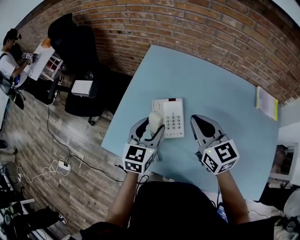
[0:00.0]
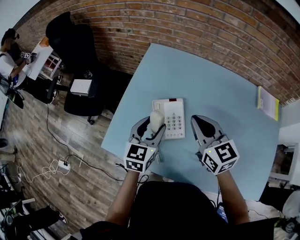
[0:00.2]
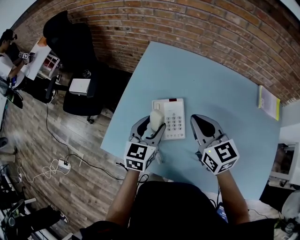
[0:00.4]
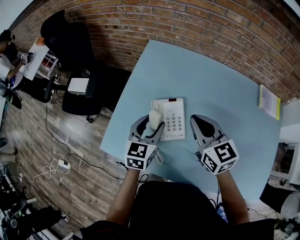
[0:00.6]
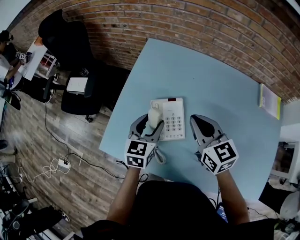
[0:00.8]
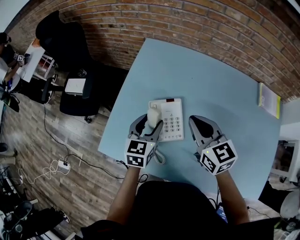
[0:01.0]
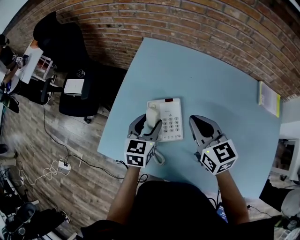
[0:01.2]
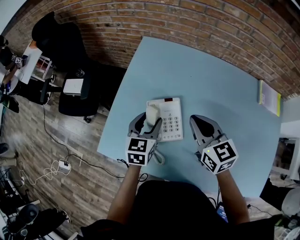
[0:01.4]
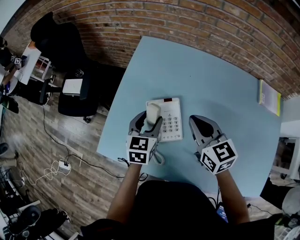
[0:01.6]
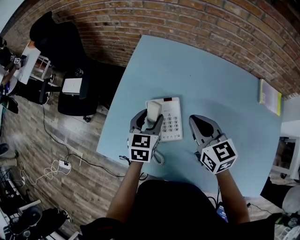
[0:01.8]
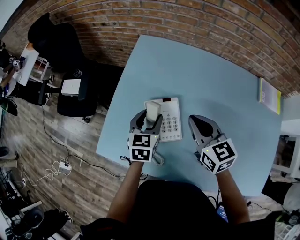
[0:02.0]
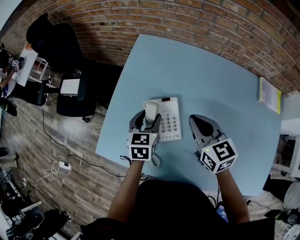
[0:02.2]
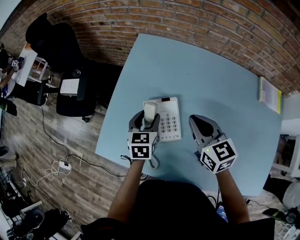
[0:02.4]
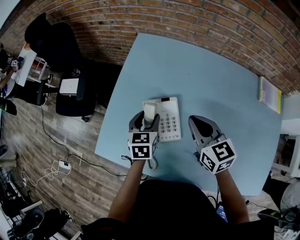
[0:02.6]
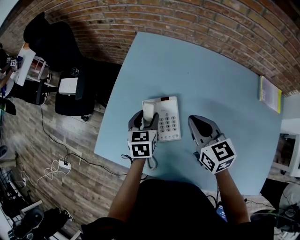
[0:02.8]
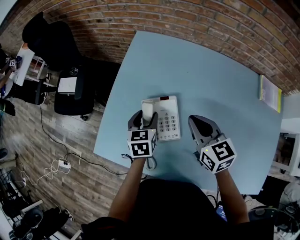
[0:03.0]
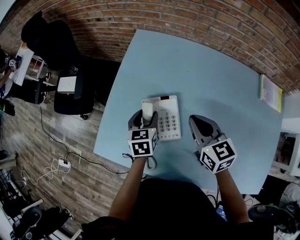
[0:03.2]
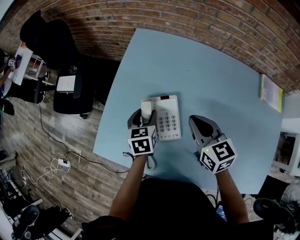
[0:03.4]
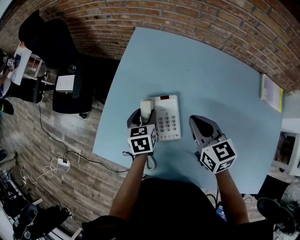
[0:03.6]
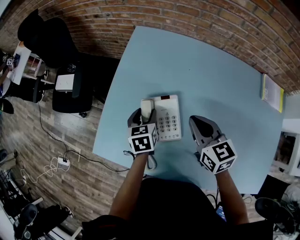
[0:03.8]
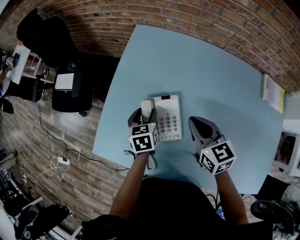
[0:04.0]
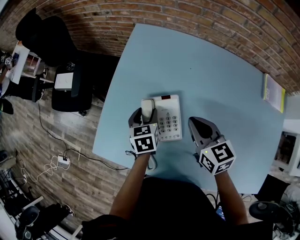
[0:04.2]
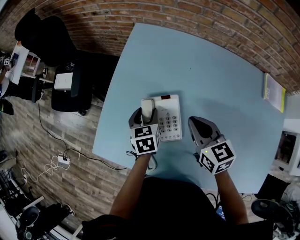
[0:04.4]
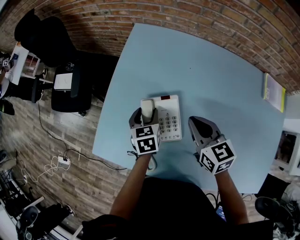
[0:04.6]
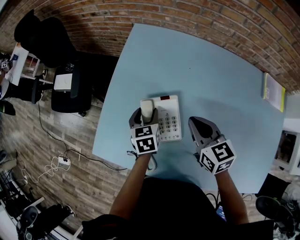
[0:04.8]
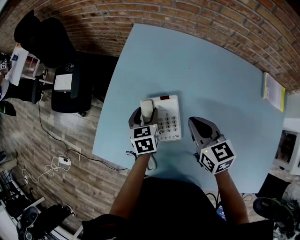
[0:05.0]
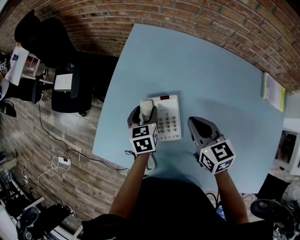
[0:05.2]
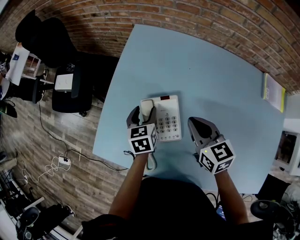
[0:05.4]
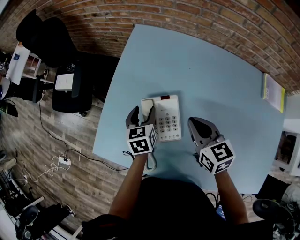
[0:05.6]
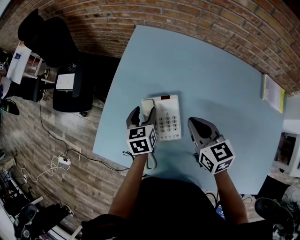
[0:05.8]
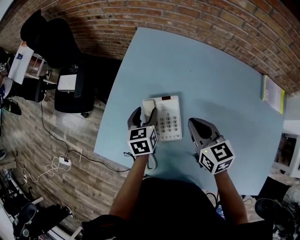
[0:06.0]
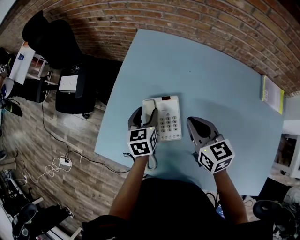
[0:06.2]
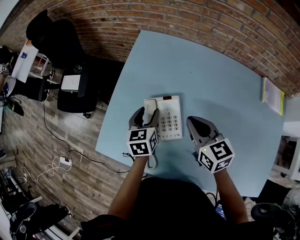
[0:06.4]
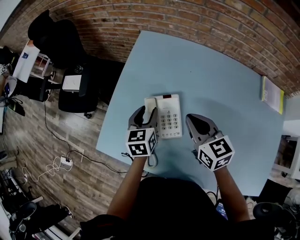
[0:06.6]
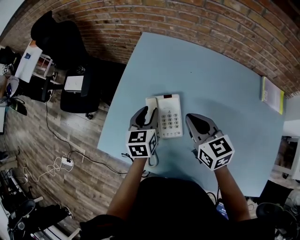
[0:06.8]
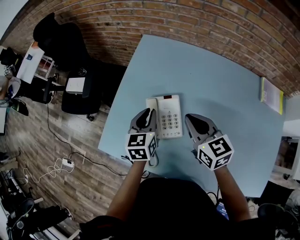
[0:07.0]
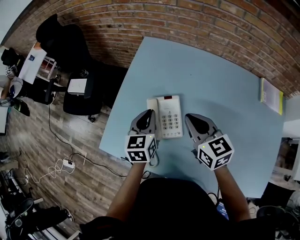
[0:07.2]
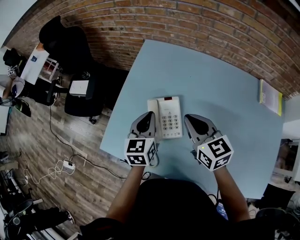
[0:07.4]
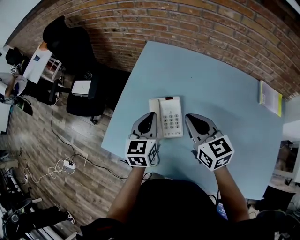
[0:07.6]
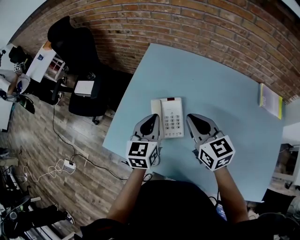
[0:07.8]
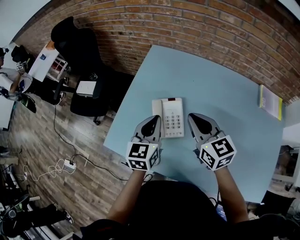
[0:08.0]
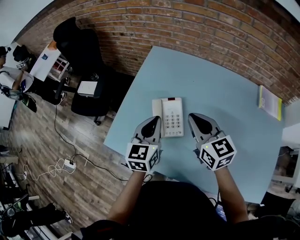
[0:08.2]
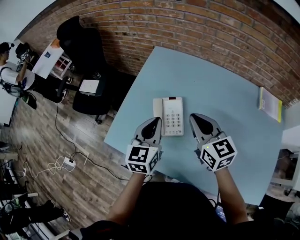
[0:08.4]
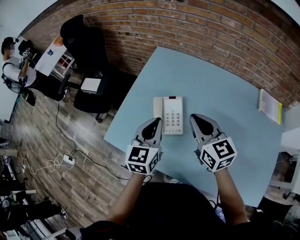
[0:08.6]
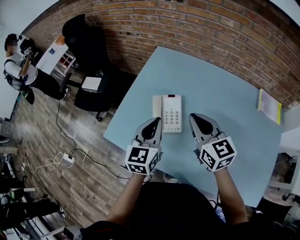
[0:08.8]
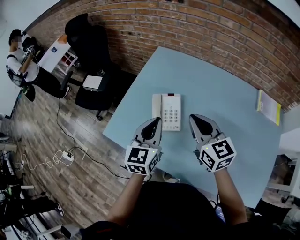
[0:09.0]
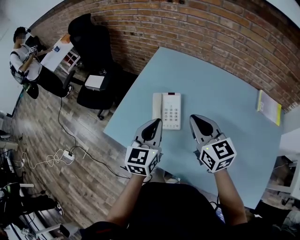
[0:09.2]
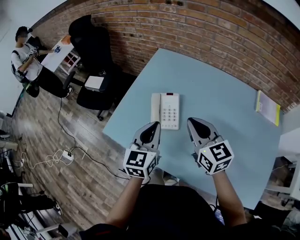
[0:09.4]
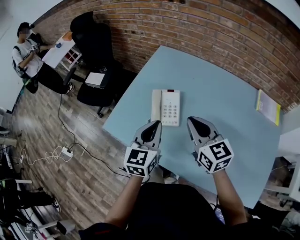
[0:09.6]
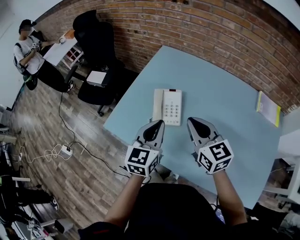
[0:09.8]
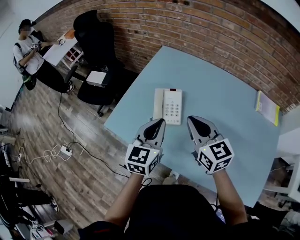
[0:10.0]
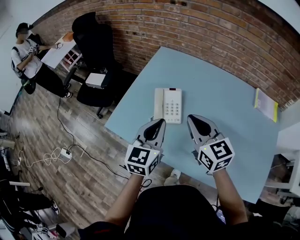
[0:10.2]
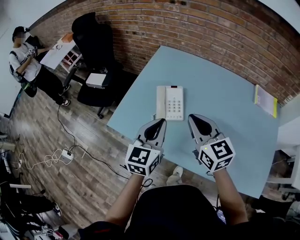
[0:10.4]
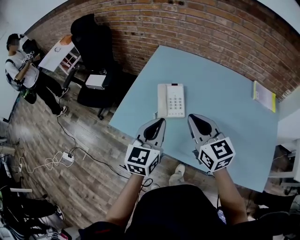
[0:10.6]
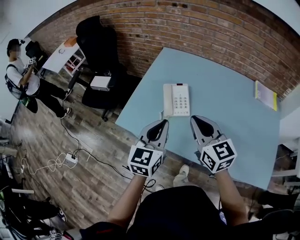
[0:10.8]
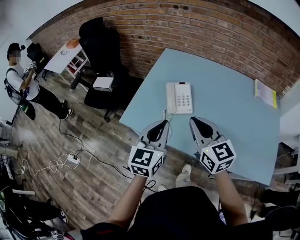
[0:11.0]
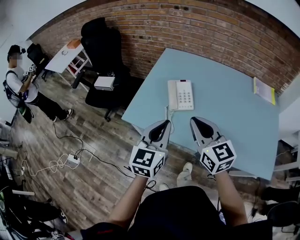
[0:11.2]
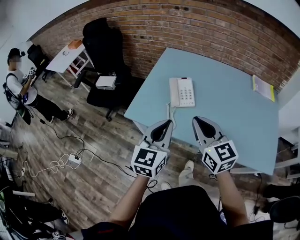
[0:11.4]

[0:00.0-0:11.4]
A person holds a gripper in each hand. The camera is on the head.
0:00.0 to 0:01.4: The right gripper travels downward by approximately 5 cm. The left gripper shifts roughly 10 cm downward and forward.
0:01.4 to 0:02.8: The left gripper ends up some 5 cm from where it was.
0:02.8 to 0:04.2: The left gripper shifts by some 5 cm.
0:04.2 to 0:05.6: The grippers stay close to where they were, moving slightly.
0:05.6 to 0:07.2: The left gripper shifts some 10 cm upward and backward, and closes up. The right gripper moves upward, about 5 cm.
0:07.2 to 0:08.6: The right gripper travels upward and backward by some 10 cm. Meanwhile the left gripper travels backward and upward by approximately 15 cm.
0:08.6 to 0:10.0: Both grippers travel together backward, roughly 10 cm.
0:10.0 to 0:11.4: The two grippers go some 20 cm backward and to the left.

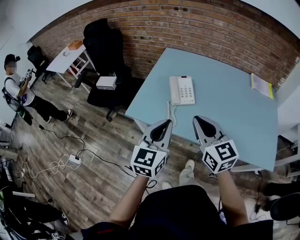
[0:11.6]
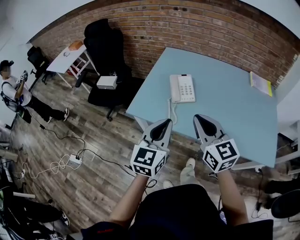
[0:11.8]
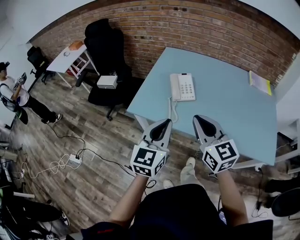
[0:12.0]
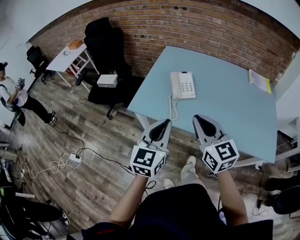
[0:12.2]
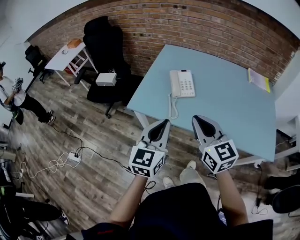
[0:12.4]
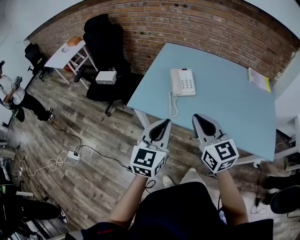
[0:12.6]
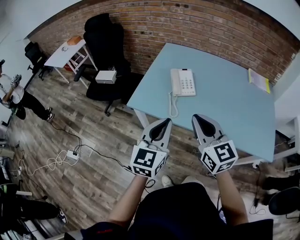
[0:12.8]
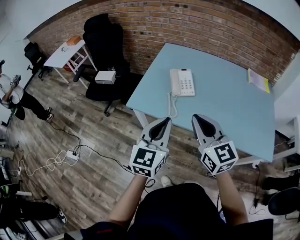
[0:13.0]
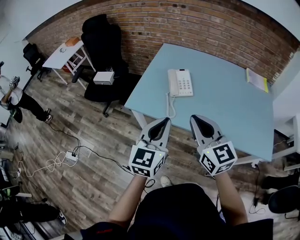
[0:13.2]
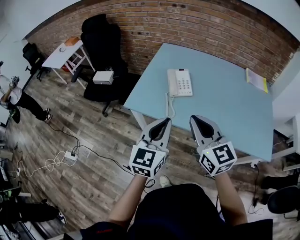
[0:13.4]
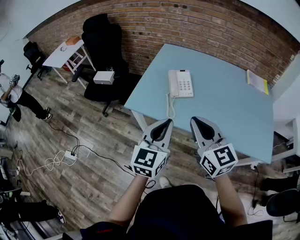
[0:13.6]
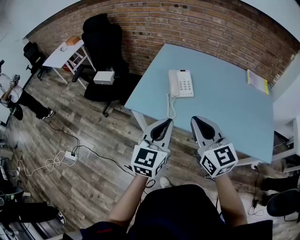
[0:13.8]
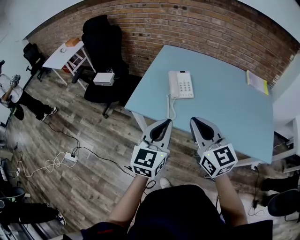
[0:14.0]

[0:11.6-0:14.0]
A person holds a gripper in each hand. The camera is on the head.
0:11.6 to 0:12.8: The grippers both shift backward by some 5 cm.
0:12.8 to 0:14.0: The grippers stay close to where they were, moving slightly.

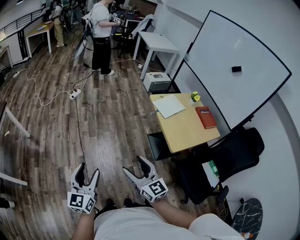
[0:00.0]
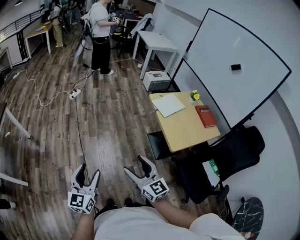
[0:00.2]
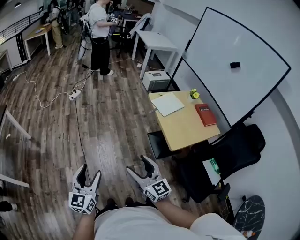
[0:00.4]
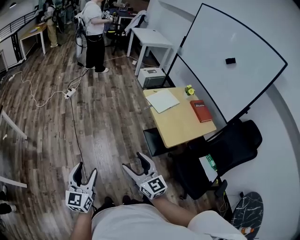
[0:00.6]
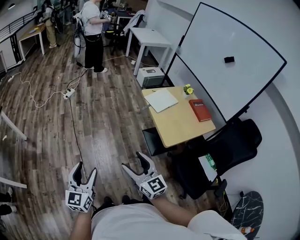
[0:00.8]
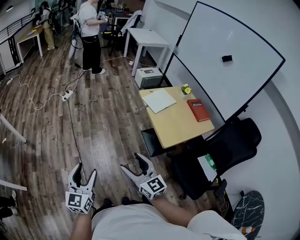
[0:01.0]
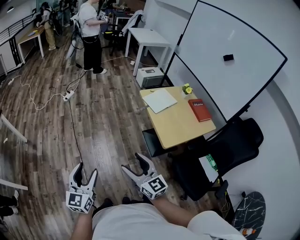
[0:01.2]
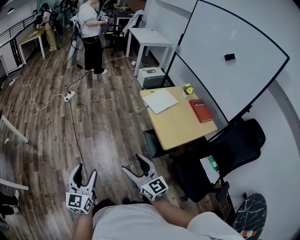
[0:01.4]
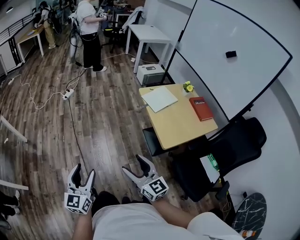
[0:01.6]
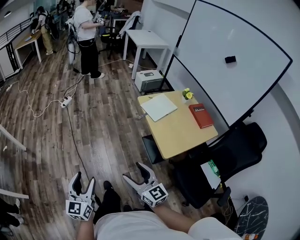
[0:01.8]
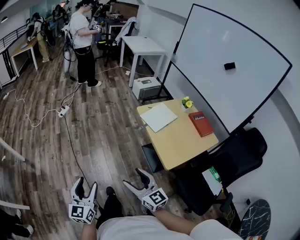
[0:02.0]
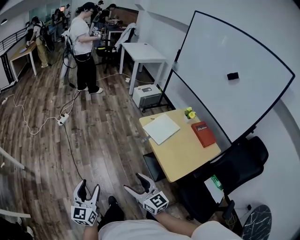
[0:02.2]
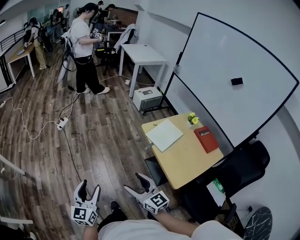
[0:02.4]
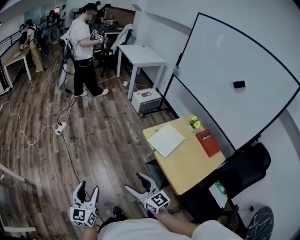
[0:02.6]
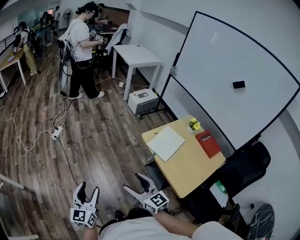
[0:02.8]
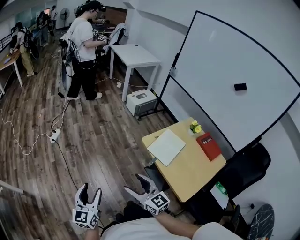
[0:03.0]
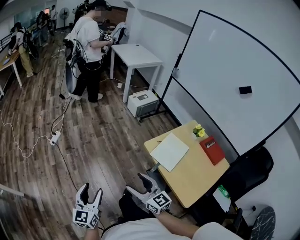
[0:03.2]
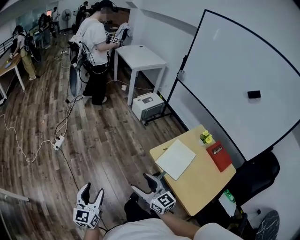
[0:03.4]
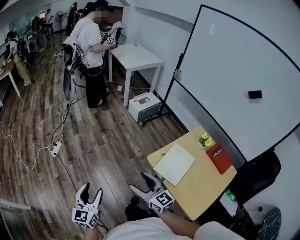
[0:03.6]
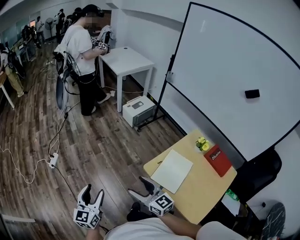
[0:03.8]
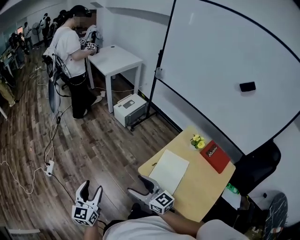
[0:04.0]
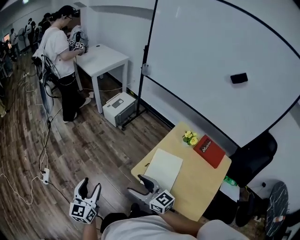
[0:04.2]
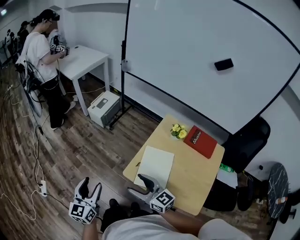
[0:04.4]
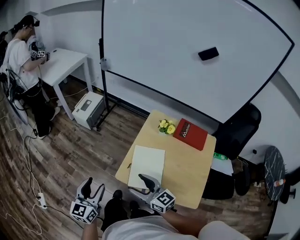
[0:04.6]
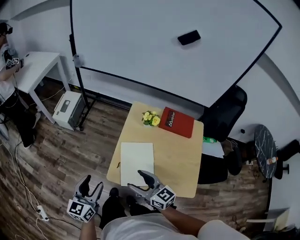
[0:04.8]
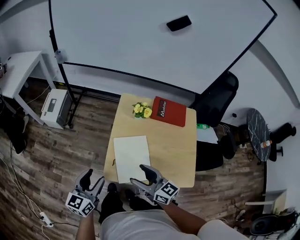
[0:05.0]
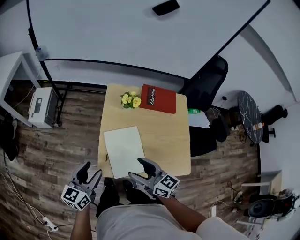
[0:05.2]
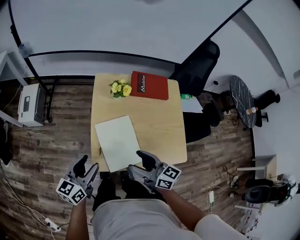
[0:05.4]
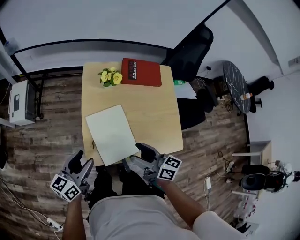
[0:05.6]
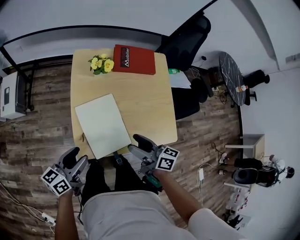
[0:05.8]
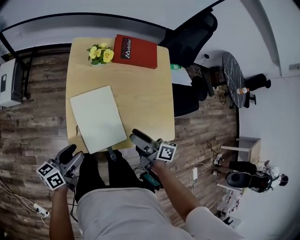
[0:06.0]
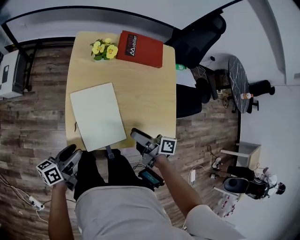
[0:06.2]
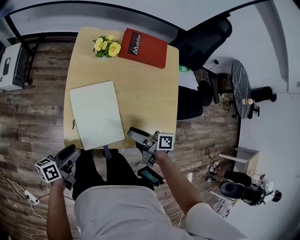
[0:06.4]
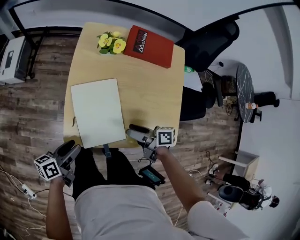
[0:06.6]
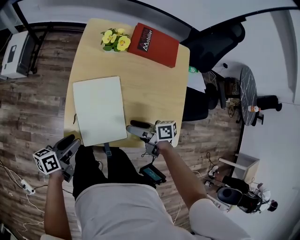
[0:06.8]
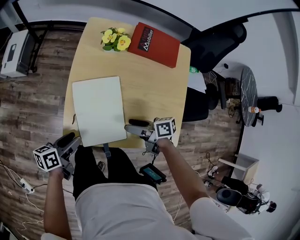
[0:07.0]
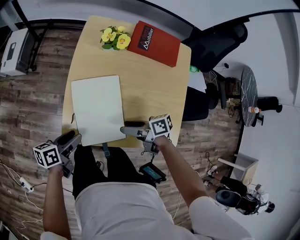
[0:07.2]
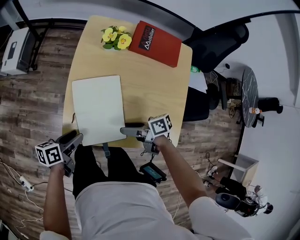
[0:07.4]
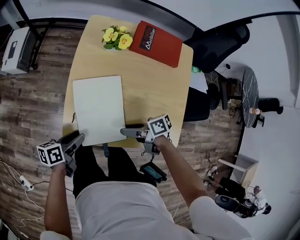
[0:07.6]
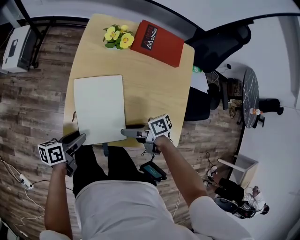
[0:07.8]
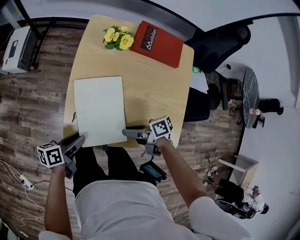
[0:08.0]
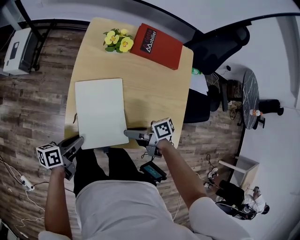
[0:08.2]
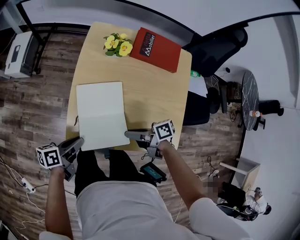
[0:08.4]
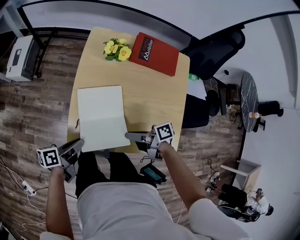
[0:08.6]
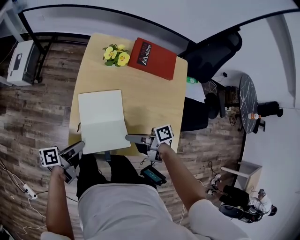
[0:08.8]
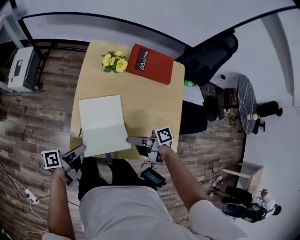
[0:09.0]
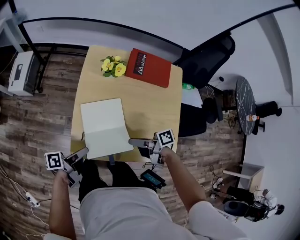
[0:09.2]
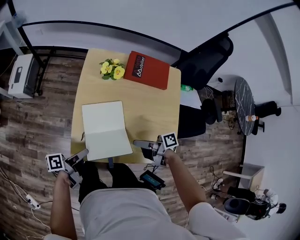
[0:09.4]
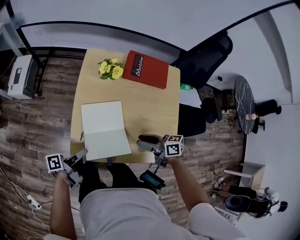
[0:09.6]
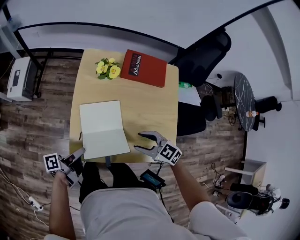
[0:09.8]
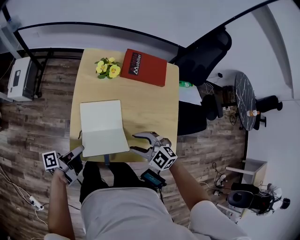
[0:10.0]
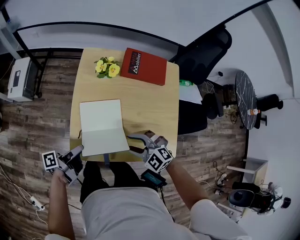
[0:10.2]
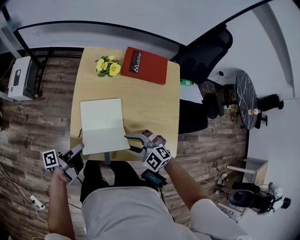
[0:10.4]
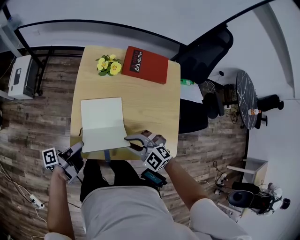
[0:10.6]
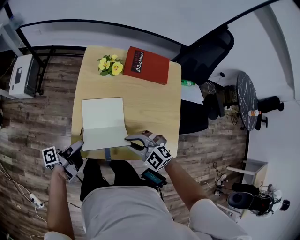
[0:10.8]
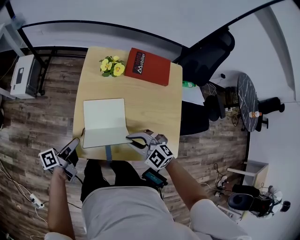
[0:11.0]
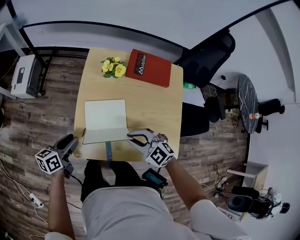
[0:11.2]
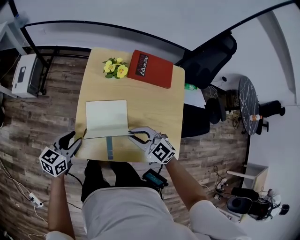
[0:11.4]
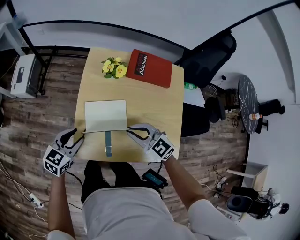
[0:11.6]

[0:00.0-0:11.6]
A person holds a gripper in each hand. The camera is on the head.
0:00.0 to 0:01.4: The grippers both shift to the right by about 10 cm.
0:01.4 to 0:02.8: The two grippers go roughly 35 cm forward.
0:02.8 to 0:04.4: The left gripper ends up approximately 50 cm from where it was, and turns by approximately 30 degrees. Meanwhile the right gripper changes place by some 40 cm, and changes its angle by approximately 20 degrees.
0:04.4 to 0:05.8: The right gripper shifts by some 20 cm, and turns by approximately 60 degrees. Meanwhile the left gripper shifts by roughly 25 cm, and turns by about 70 degrees.
0:05.8 to 0:07.2: The grippers both shift downward by some 15 cm. The left gripper swivels approximately 30 degrees, while the right gripper swivels approximately 50 degrees.
0:07.2 to 0:08.8: The right gripper closes its fingers; the left gripper shifts approximately 5 cm upward, turns by about 20 degrees, and closes up.
0:08.8 to 0:10.2: The right gripper twists some 100 degrees counterclockwise, seen from behind, and opens.
0:10.2 to 0:11.6: The right gripper heads forward, covering about 5 cm, rotates approximately 20 degrees, and closes its fingers. The left gripper moves about 5 cm, and rotates around the line of its fingers by roughly 80 degrees, clockwise from behind.
